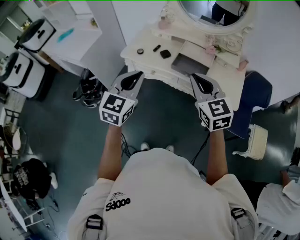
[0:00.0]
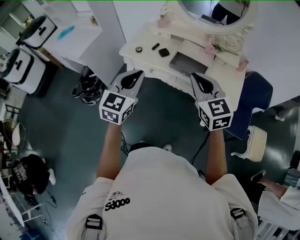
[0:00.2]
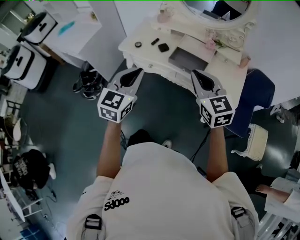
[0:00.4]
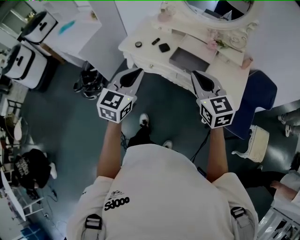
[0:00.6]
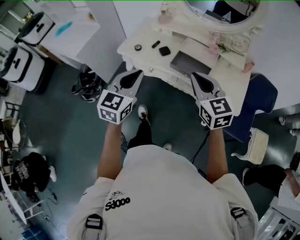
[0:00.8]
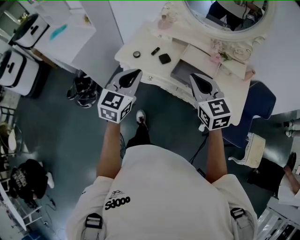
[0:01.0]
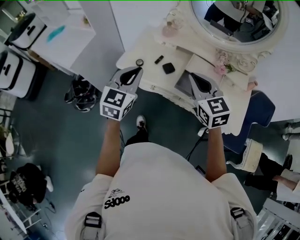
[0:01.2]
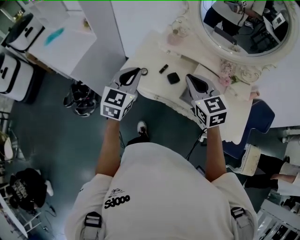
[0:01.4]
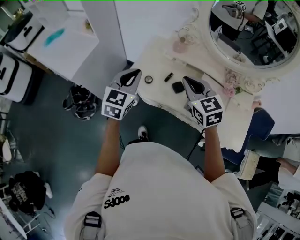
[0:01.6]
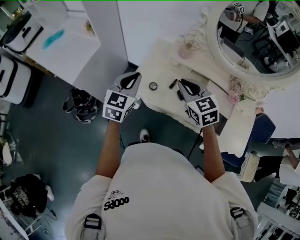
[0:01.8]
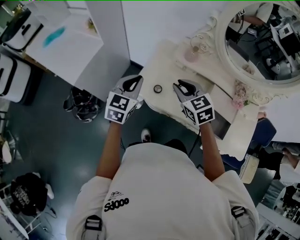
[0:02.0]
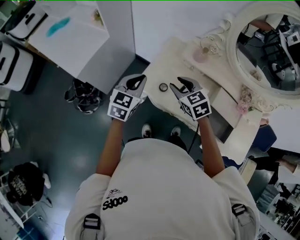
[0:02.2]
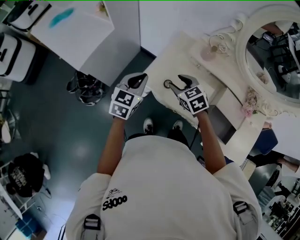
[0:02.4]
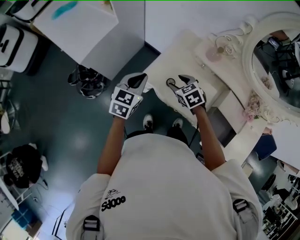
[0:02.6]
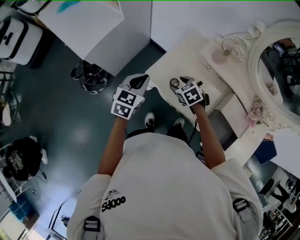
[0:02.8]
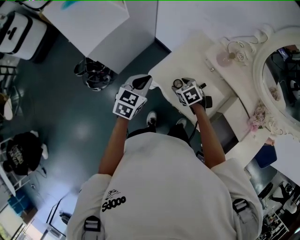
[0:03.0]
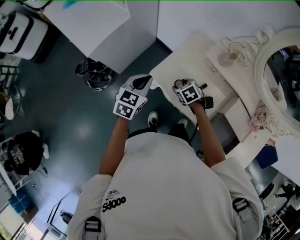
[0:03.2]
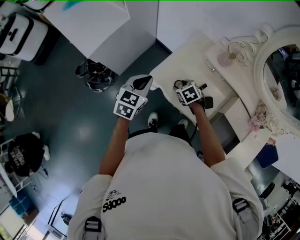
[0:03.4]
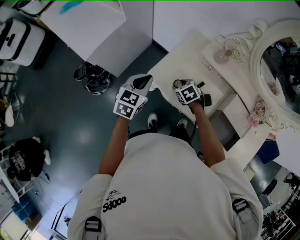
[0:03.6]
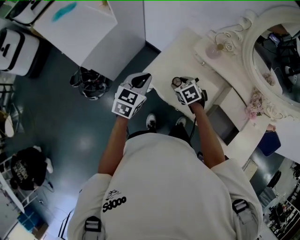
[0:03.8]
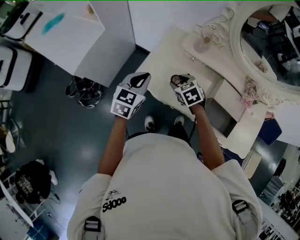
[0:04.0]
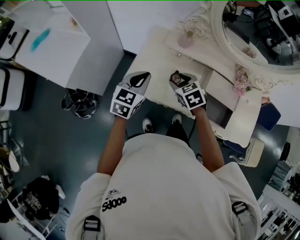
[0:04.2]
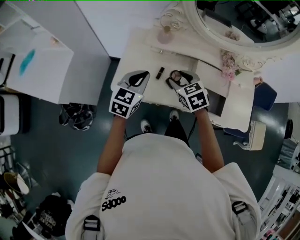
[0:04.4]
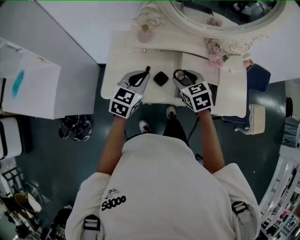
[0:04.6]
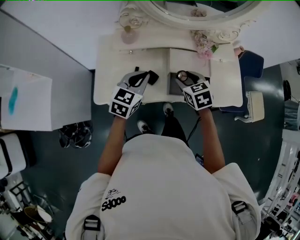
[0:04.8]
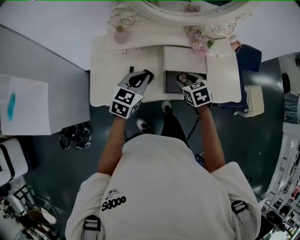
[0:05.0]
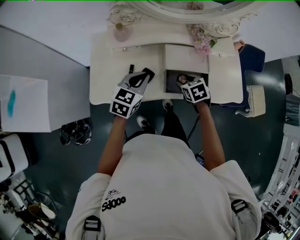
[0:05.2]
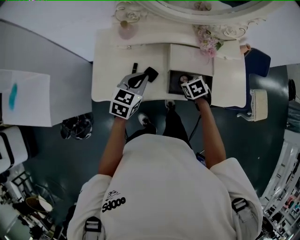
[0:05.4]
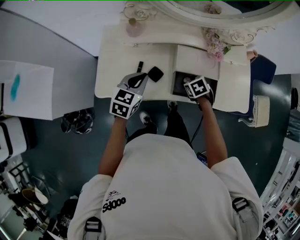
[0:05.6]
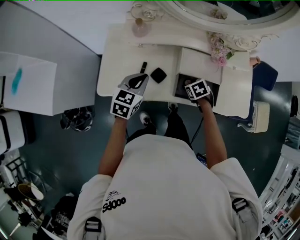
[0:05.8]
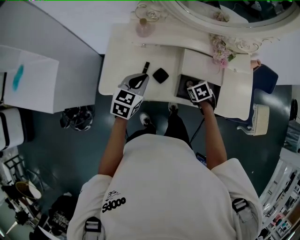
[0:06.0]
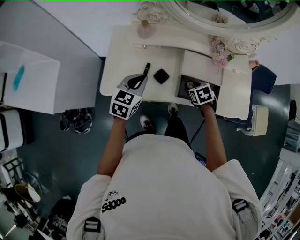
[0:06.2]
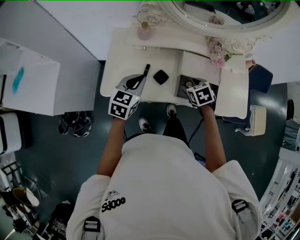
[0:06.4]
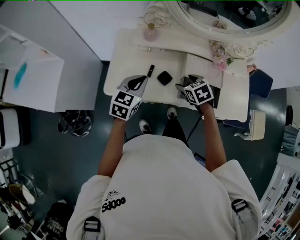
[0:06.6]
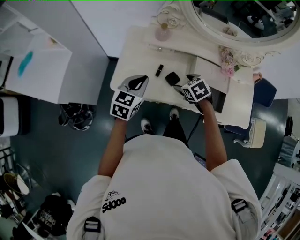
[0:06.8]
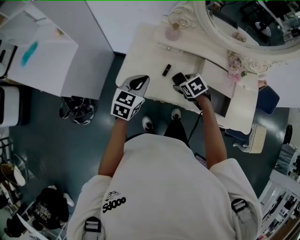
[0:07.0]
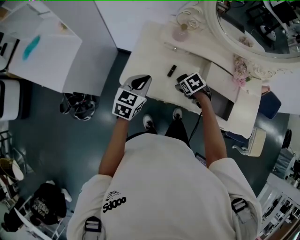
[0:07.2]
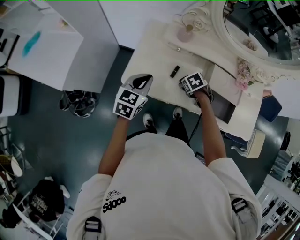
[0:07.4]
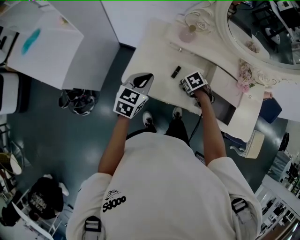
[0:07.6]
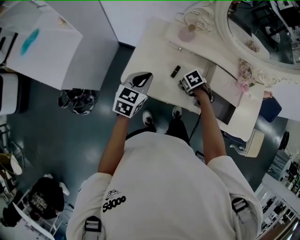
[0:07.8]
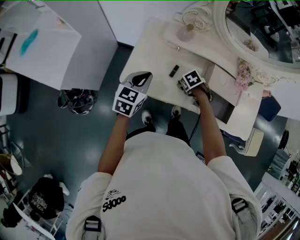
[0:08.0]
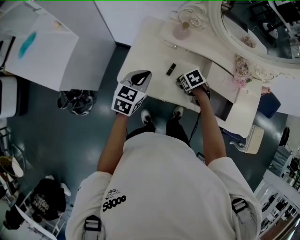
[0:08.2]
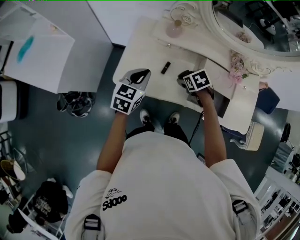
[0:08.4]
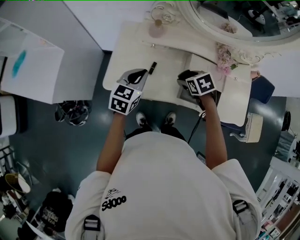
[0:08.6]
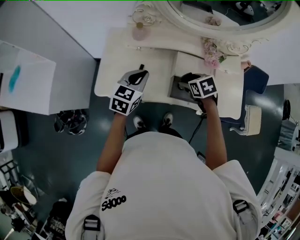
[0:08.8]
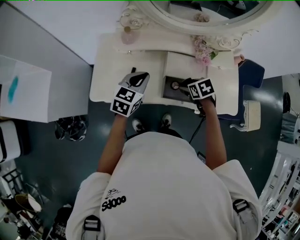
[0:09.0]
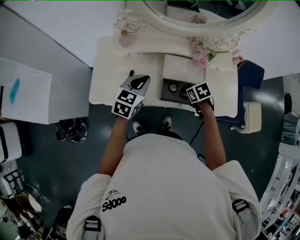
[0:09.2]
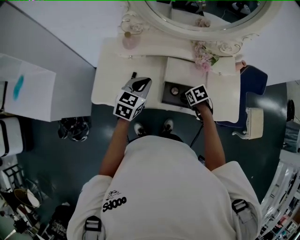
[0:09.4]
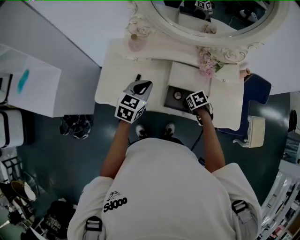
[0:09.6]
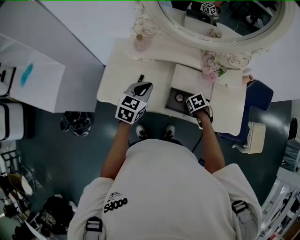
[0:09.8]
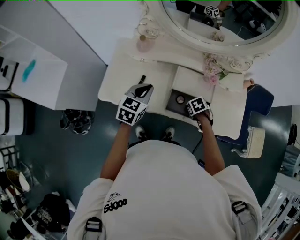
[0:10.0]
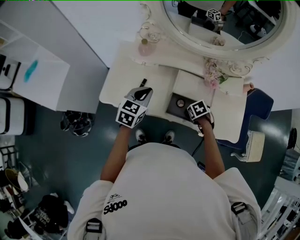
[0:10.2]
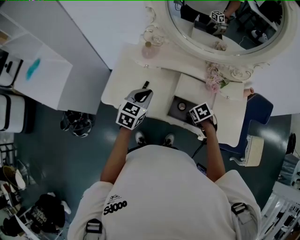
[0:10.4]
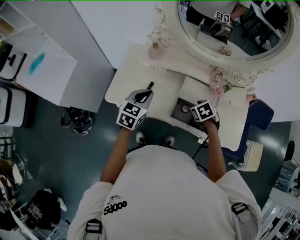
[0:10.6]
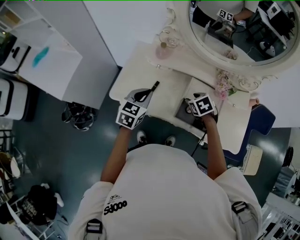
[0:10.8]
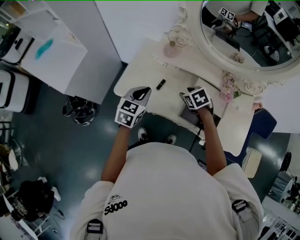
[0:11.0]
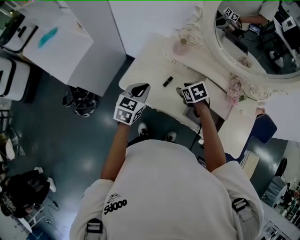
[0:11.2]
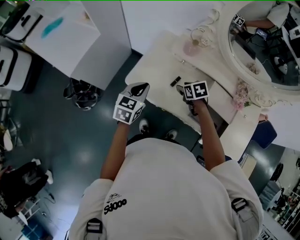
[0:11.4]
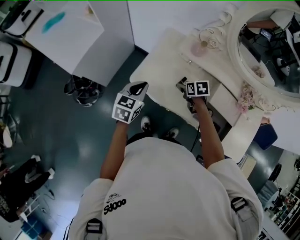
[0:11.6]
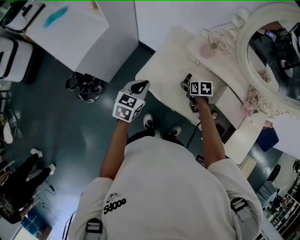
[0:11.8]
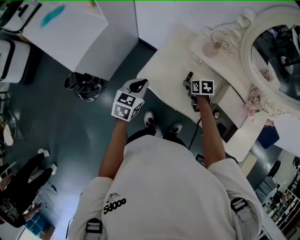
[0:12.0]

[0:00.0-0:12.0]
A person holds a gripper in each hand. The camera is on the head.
0:00.0 to 0:01.6: The right gripper is displaced forward and to the left by approximately 35 cm; the left gripper goes about 30 cm forward.
0:01.6 to 0:03.0: The left gripper travels downward, to the left and forward by some 20 cm, and turns by approximately 20 degrees, while the right gripper travels downward and forward by about 30 cm, tips its fingers downward by roughly 40 degrees, and opens.
0:03.0 to 0:04.4: The right gripper moves upward, approximately 15 cm, and changes its angle by some 30 degrees. The left gripper shifts by about 20 cm, and changes its angle by about 30 degrees.
0:04.4 to 0:06.0: The left gripper travels to the right and downward by some 10 cm. The right gripper moves to the right and downward, about 25 cm, and swivels some 30 degrees.
0:06.0 to 0:07.6: The left gripper shifts by some 15 cm, while the right gripper goes upward and returns, roughly 10 cm each way.
0:07.6 to 0:09.0: The right gripper moves some 20 cm, and swivels roughly 30 degrees. Meanwhile the left gripper moves approximately 20 cm.
0:09.0 to 0:10.4: The right gripper heads downward, covering approximately 5 cm.
0:10.4 to 0:12.0: The right gripper moves some 10 cm upward and comes back. Meanwhile the left gripper changes place by some 25 cm, and turns by about 20 degrees.

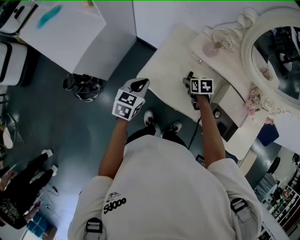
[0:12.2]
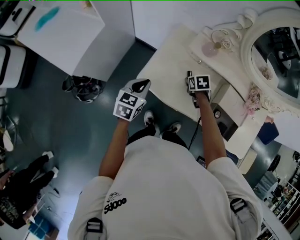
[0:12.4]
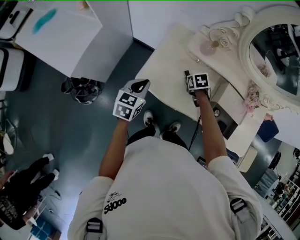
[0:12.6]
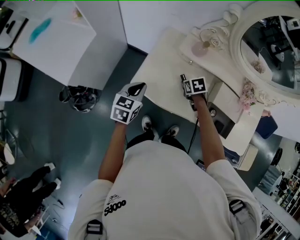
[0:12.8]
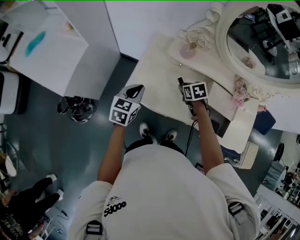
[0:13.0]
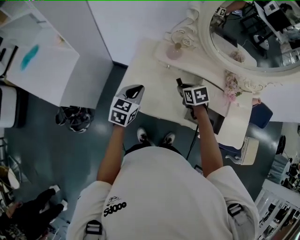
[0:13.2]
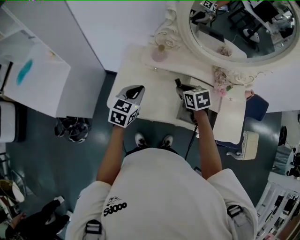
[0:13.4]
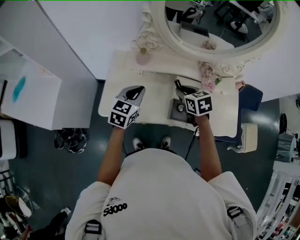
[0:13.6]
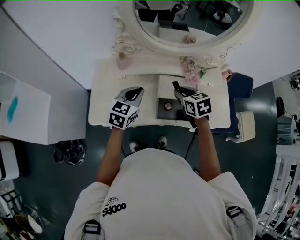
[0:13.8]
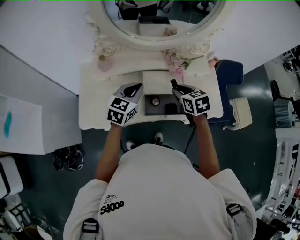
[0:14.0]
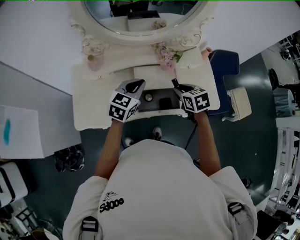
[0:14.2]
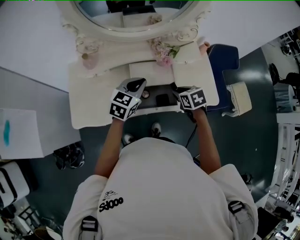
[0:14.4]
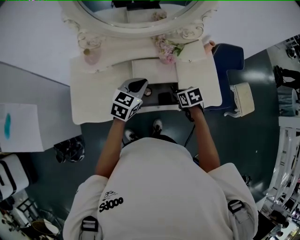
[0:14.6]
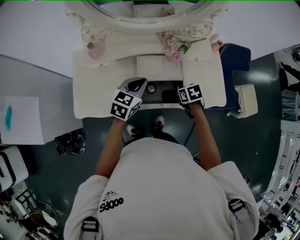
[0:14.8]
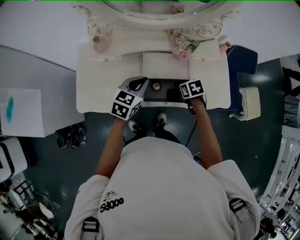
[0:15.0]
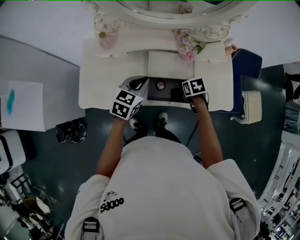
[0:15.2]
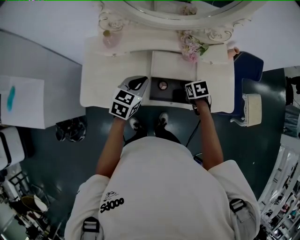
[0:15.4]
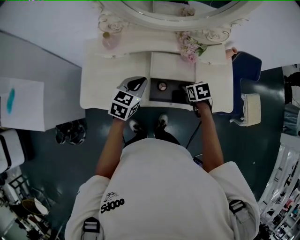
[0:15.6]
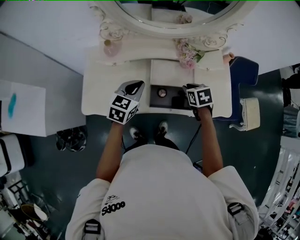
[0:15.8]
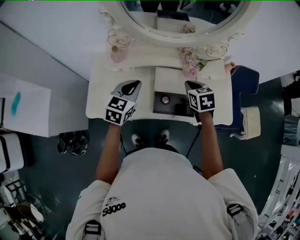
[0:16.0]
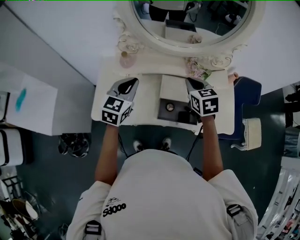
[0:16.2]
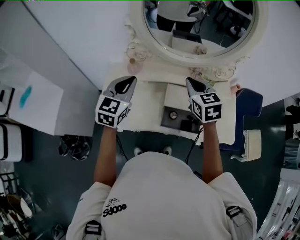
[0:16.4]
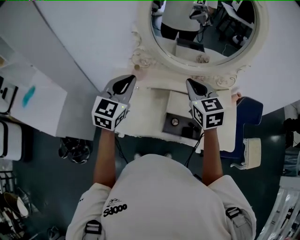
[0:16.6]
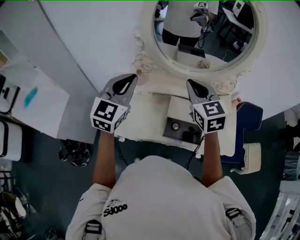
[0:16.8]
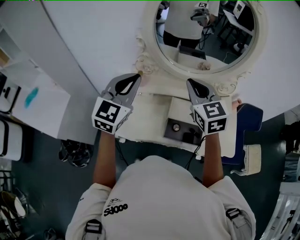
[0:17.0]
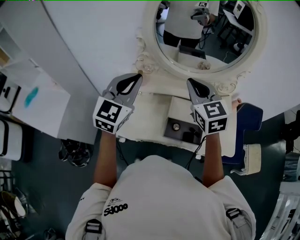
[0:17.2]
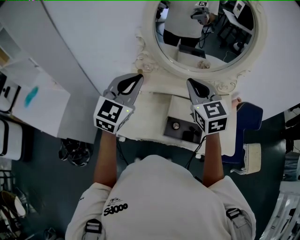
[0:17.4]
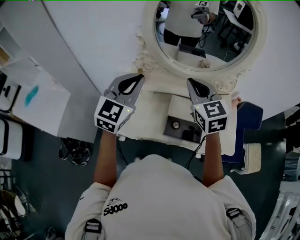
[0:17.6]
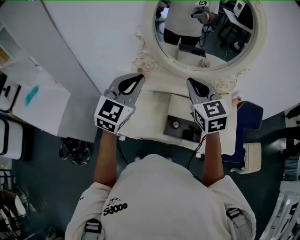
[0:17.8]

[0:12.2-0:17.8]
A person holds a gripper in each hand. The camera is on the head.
0:12.2 to 0:13.6: The right gripper heads upward and to the right, covering roughly 25 cm, and turns by about 20 degrees; the left gripper is displaced to the right and upward by about 25 cm, and turns by some 30 degrees.
0:13.6 to 0:15.0: The right gripper heads to the right and downward, covering some 25 cm, and swivels some 30 degrees, while the left gripper shifts roughly 20 cm to the right.
0:15.0 to 0:16.4: Both grippers move upward and to the left, about 25 cm. The left gripper changes its angle by about 30 degrees. Meanwhile the right gripper tilts its fingers approximately 40 degrees upward.
0:16.4 to 0:17.8: Both grippers travel together upward, some 10 cm.

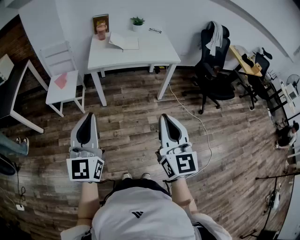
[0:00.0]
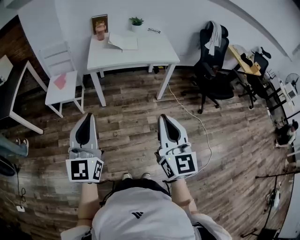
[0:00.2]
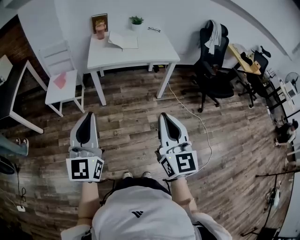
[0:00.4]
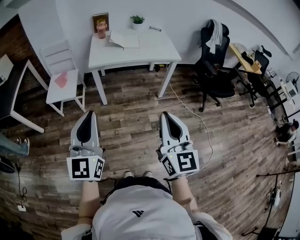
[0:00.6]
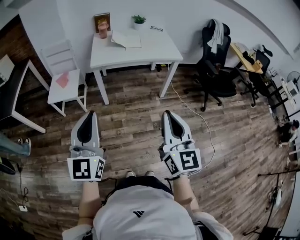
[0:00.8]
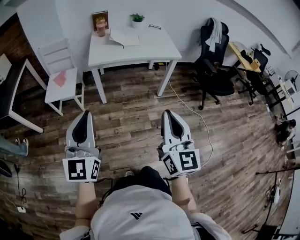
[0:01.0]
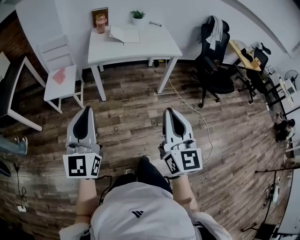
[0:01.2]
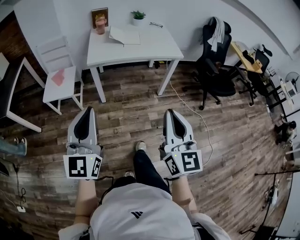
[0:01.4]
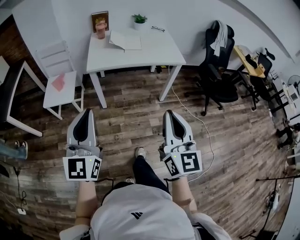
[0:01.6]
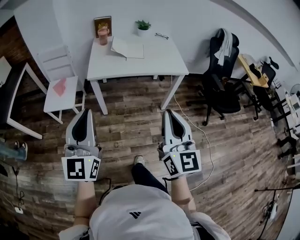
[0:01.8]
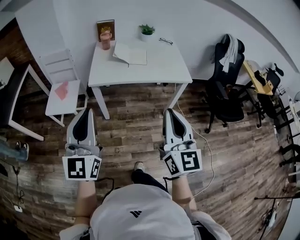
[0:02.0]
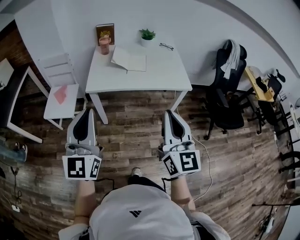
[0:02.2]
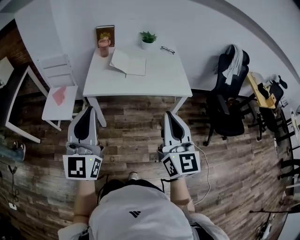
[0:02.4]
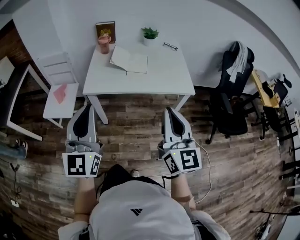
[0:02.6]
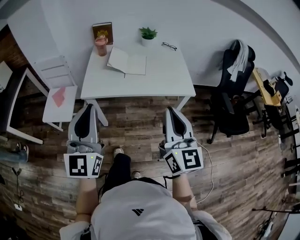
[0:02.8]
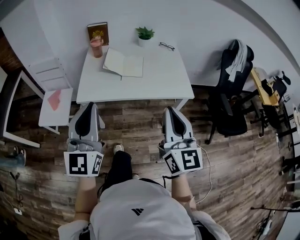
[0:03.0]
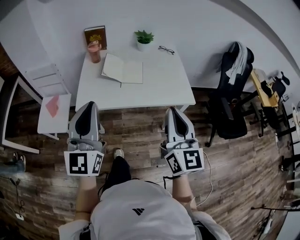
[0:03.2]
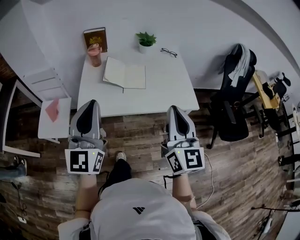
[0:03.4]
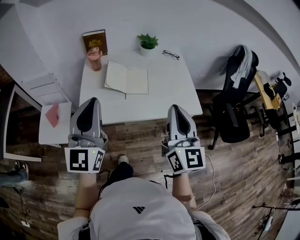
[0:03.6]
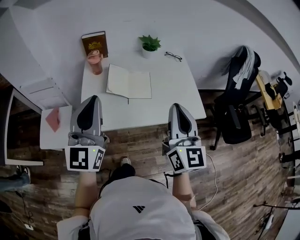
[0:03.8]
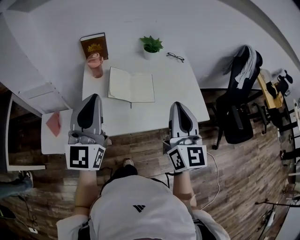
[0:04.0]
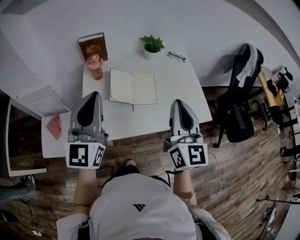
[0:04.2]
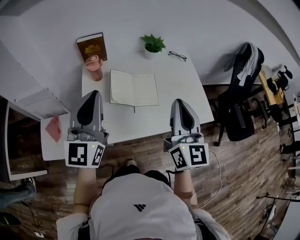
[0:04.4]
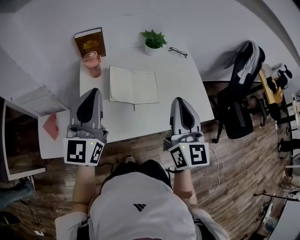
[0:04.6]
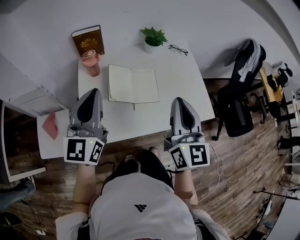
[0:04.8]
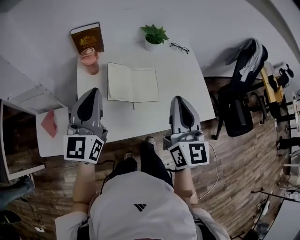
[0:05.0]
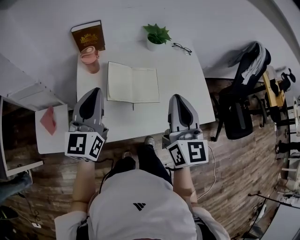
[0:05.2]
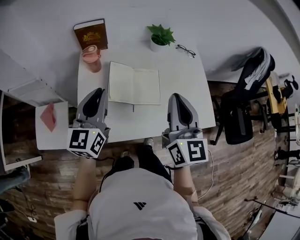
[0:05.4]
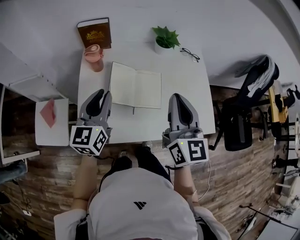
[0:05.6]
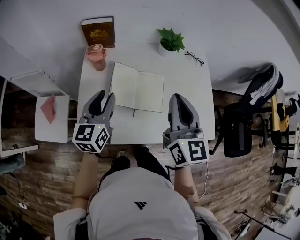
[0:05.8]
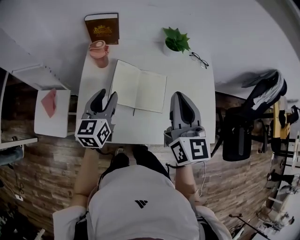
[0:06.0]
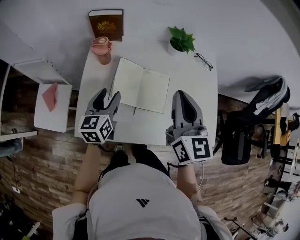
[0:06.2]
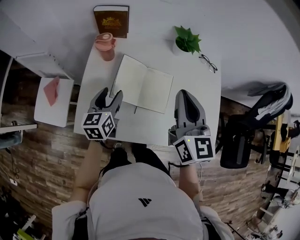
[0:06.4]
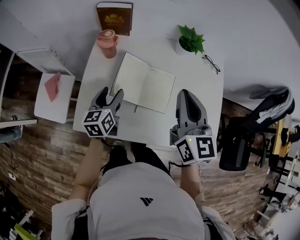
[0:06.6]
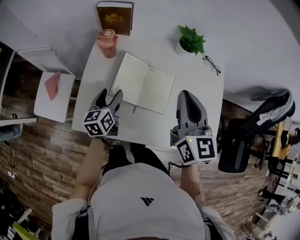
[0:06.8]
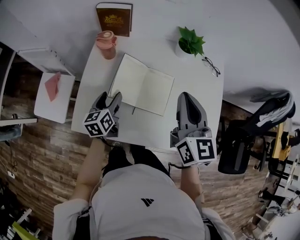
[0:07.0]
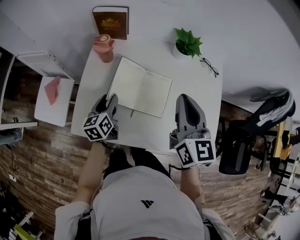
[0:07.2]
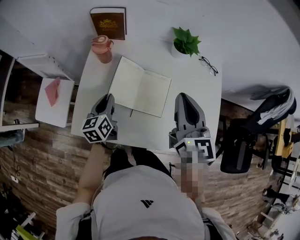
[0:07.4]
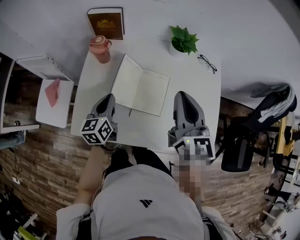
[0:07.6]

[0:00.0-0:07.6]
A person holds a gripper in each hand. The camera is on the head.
0:00.0 to 0:01.6: The two grippers go some 10 cm forward.
0:01.6 to 0:03.0: Both grippers move forward, about 30 cm.
0:03.0 to 0:04.6: Both grippers move forward, about 30 cm.
0:04.6 to 0:06.0: The left gripper is displaced downward and forward by about 20 cm, swivels about 30 degrees, and opens up. The right gripper heads forward, covering about 10 cm.
0:06.0 to 0:07.6: The left gripper is displaced downward by approximately 10 cm, and closes. The right gripper changes place by some 5 cm.
